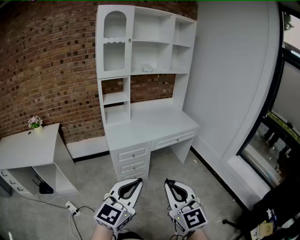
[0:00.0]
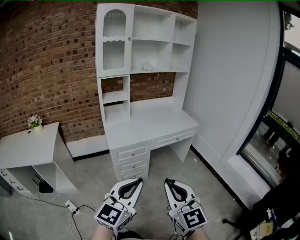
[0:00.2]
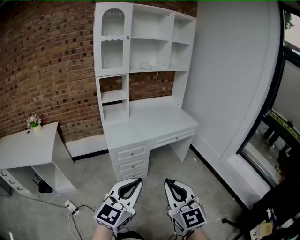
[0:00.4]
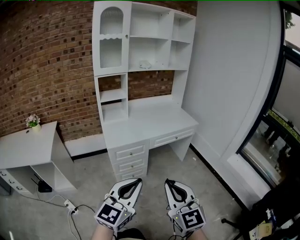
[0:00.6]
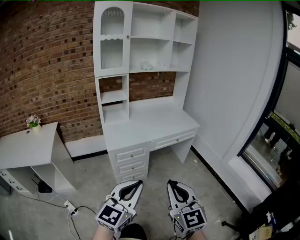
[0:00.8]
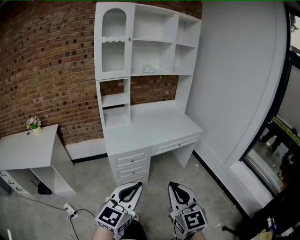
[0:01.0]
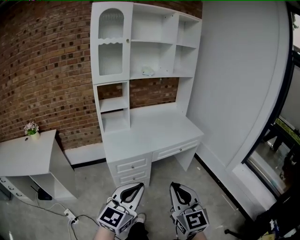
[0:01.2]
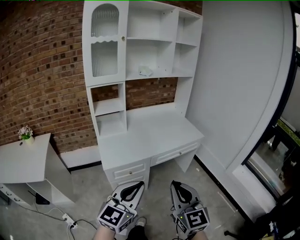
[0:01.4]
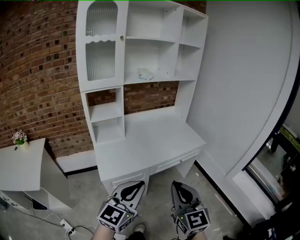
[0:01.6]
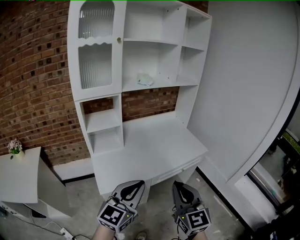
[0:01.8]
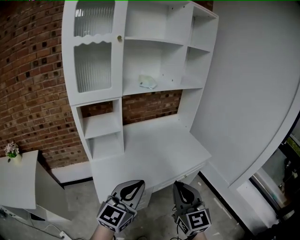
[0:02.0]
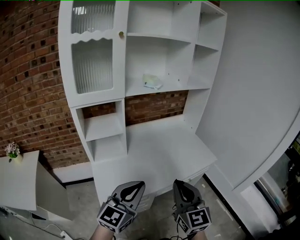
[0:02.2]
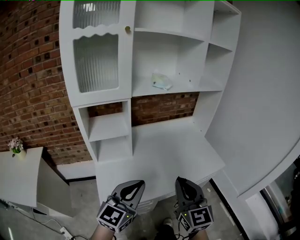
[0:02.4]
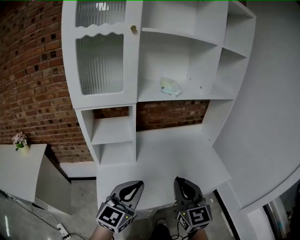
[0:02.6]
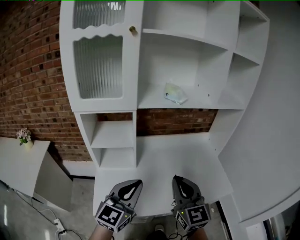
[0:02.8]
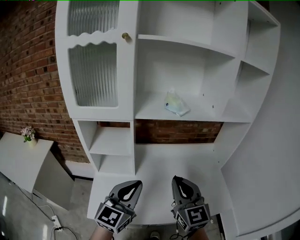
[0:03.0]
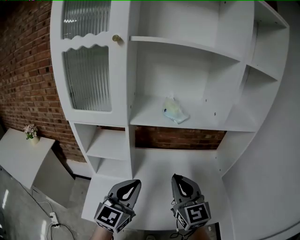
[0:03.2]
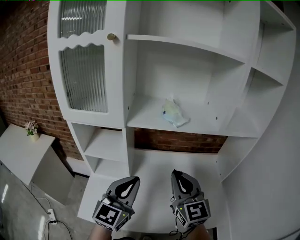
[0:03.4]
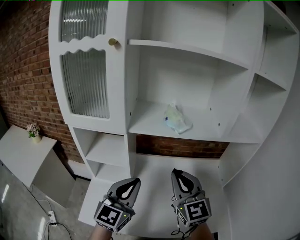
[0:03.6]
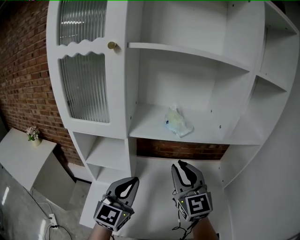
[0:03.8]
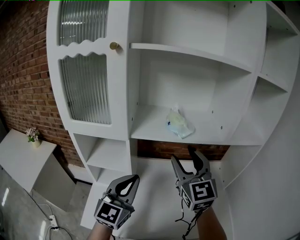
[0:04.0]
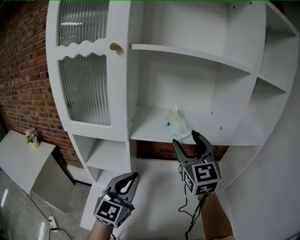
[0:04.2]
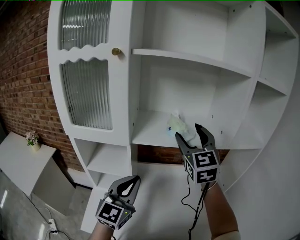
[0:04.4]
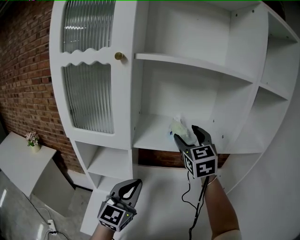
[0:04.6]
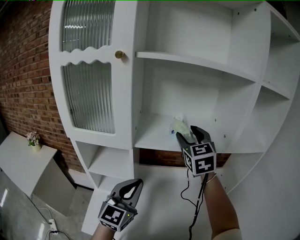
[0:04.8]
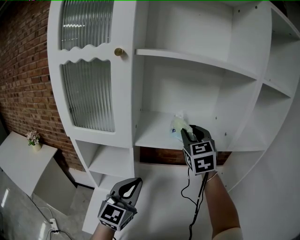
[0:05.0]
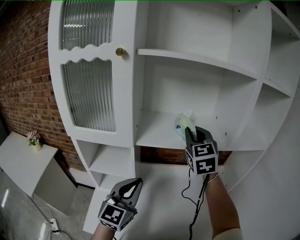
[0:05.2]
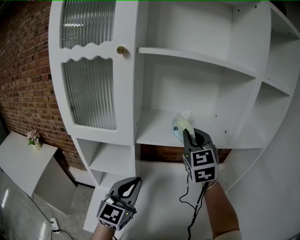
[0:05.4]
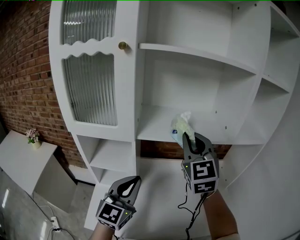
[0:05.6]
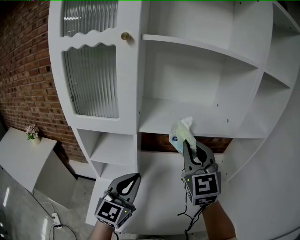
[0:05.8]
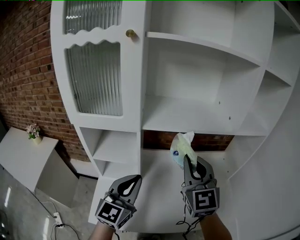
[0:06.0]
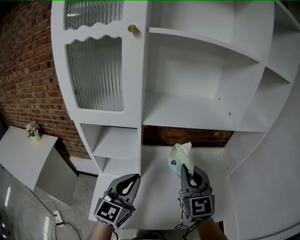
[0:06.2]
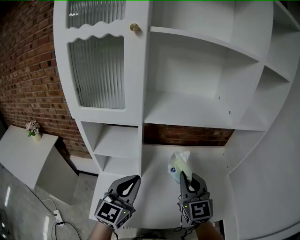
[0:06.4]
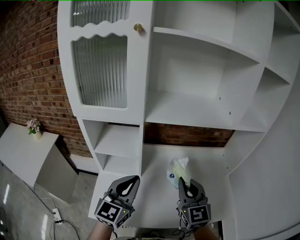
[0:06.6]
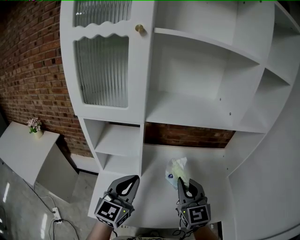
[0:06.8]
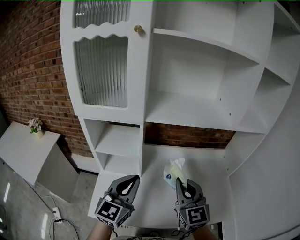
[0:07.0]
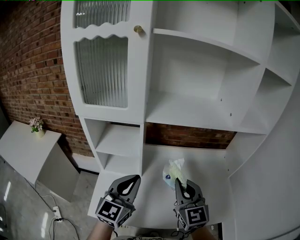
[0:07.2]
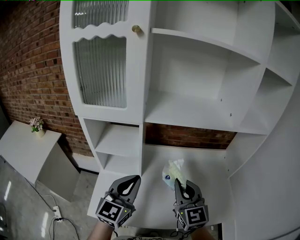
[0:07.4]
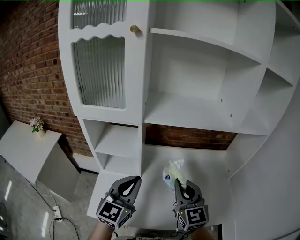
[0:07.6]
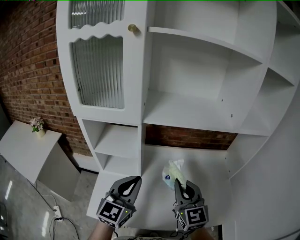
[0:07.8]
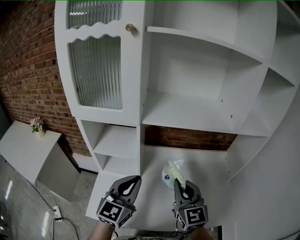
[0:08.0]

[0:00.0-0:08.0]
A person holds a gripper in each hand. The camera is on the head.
0:00.0 to 0:01.6: The grippers both shift forward by some 30 cm.
0:01.6 to 0:03.2: Both grippers are carried roughly 50 cm. The left gripper turns by roughly 30 degrees, while the right gripper rotates about 30 degrees.
0:03.2 to 0:04.8: The left gripper goes approximately 10 cm forward. The right gripper is displaced forward and upward by about 30 cm, and opens.
0:04.8 to 0:06.4: The right gripper is displaced backward and downward by approximately 25 cm, and closes, while the left gripper travels backward by approximately 5 cm.
0:06.4 to 0:08.0: The grippers make only small movements.

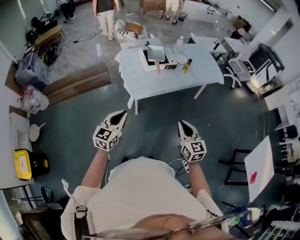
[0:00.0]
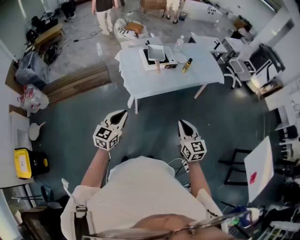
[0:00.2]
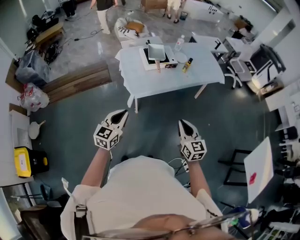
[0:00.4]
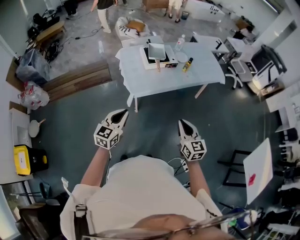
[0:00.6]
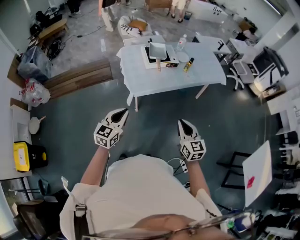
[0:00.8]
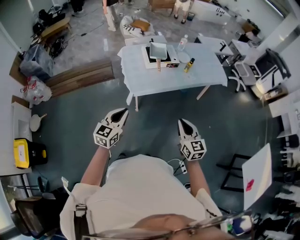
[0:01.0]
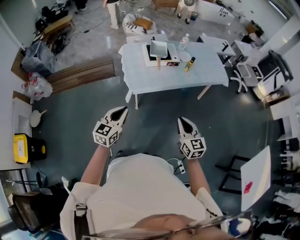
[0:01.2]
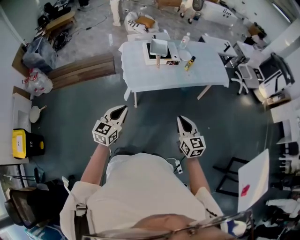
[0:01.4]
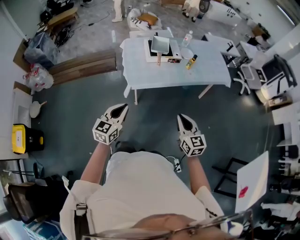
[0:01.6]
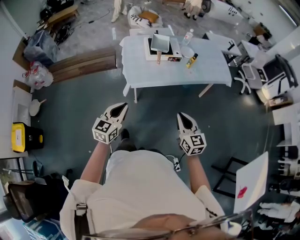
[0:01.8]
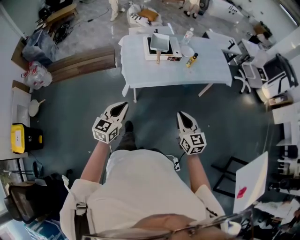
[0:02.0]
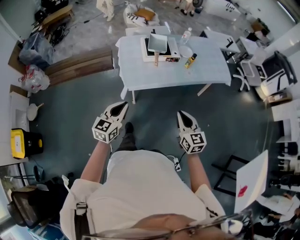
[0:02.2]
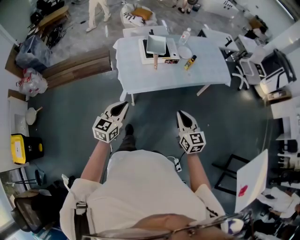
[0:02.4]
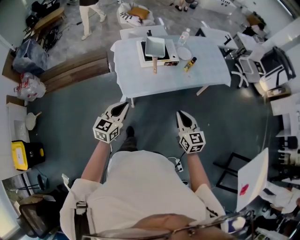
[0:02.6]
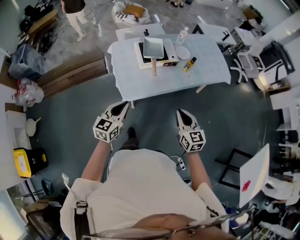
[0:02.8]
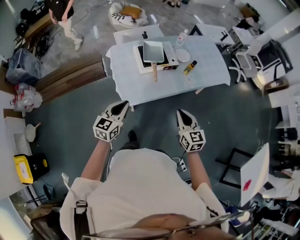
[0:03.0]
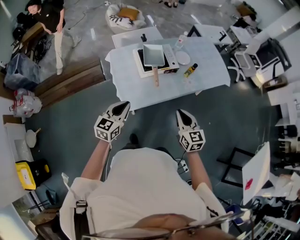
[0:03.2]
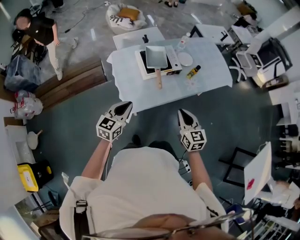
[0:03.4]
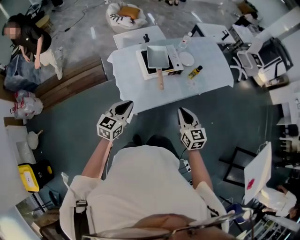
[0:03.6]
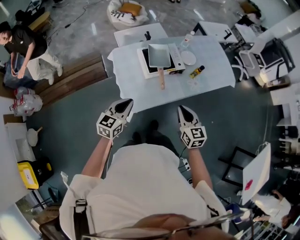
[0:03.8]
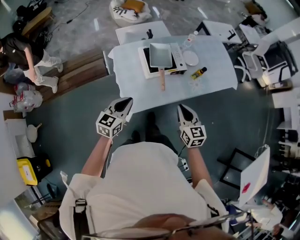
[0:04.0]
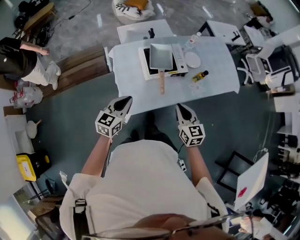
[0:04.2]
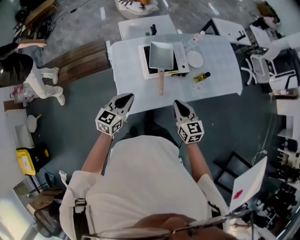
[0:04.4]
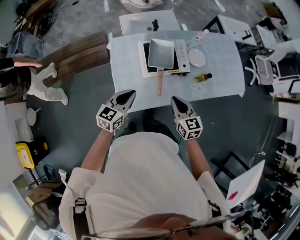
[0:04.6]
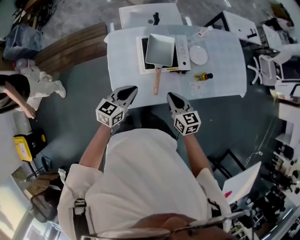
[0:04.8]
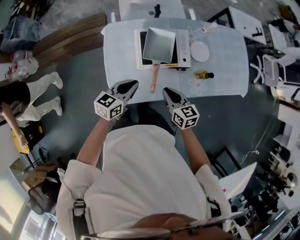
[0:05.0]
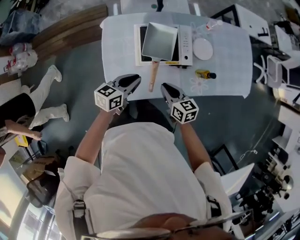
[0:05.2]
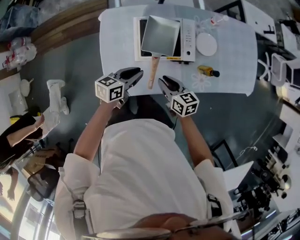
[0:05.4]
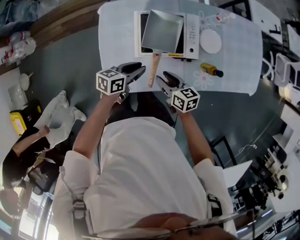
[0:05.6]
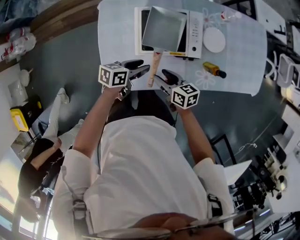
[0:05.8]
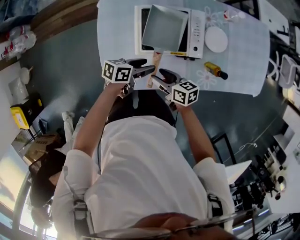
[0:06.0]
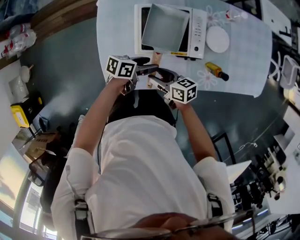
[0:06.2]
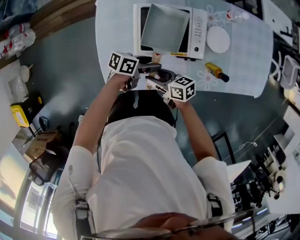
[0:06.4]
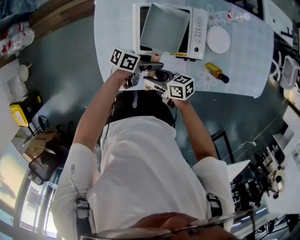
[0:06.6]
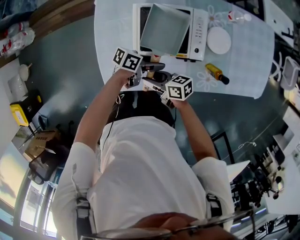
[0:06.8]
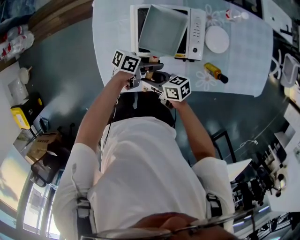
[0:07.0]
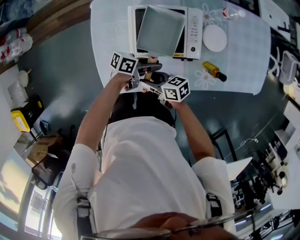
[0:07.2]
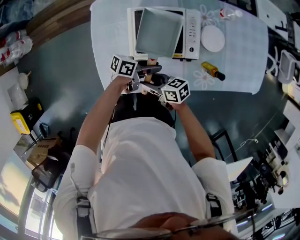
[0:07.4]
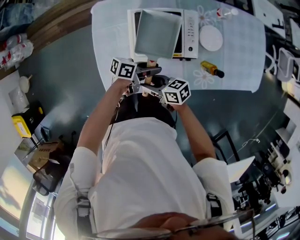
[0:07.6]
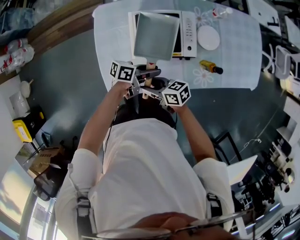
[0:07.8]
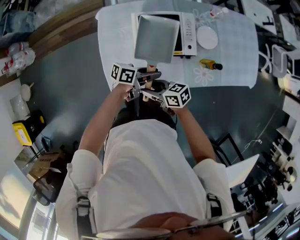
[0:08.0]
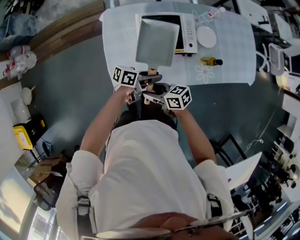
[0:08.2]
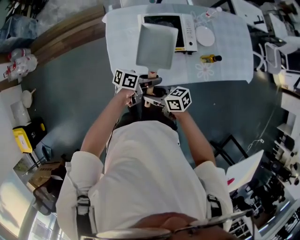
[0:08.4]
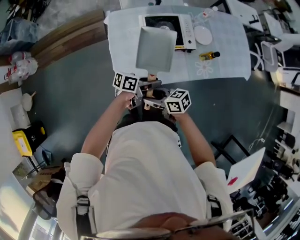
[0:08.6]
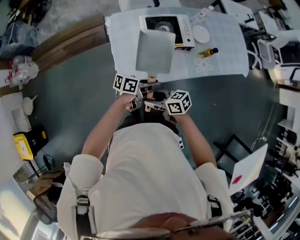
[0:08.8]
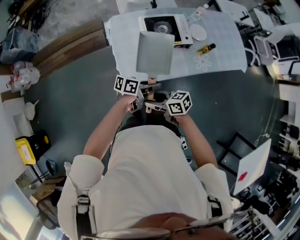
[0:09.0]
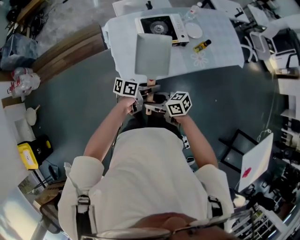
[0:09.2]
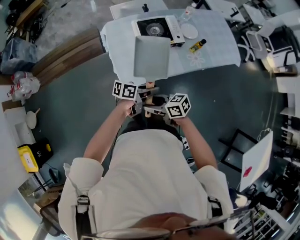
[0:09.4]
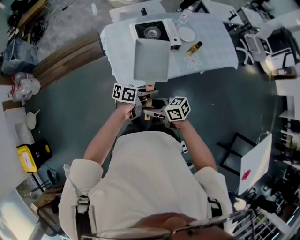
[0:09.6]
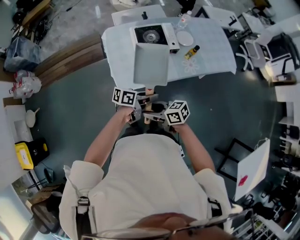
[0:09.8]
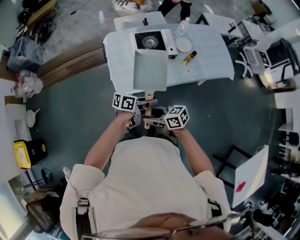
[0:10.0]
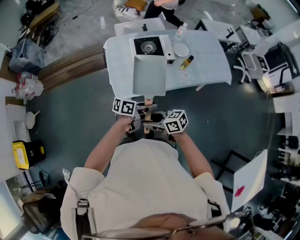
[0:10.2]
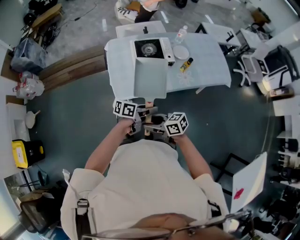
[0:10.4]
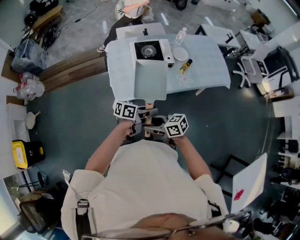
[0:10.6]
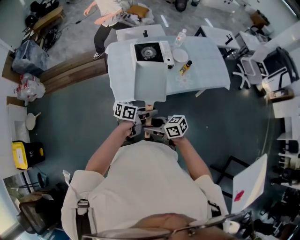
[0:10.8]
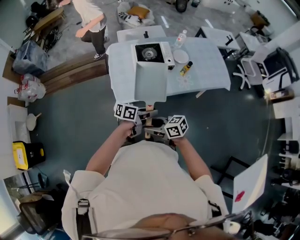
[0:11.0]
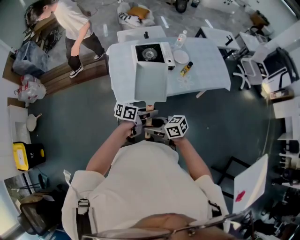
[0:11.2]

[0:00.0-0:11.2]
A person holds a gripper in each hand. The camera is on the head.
0:00.0 to 0:01.6: The two grippers go about 10 cm to the right.
0:01.6 to 0:03.2: Both grippers move forward, about 25 cm.
0:03.2 to 0:04.8: The right gripper is displaced forward and downward by roughly 25 cm, and turns by approximately 20 degrees. Meanwhile the left gripper moves forward, approximately 20 cm.
0:04.8 to 0:06.4: The grippers both shift downward by approximately 20 cm. The left gripper twists about 40 degrees counterclockwise, seen from behind, and opens up; the right gripper rotates some 50 degrees, and opens.
0:06.4 to 0:08.0: The left gripper heads upward, covering approximately 5 cm, and closes, while the right gripper moves some 10 cm.
0:08.0 to 0:09.6: The right gripper moves approximately 25 cm; the left gripper moves approximately 25 cm.
0:09.6 to 0:11.2: The right gripper ends up approximately 10 cm from where it was. Meanwhile the left gripper changes place by some 10 cm.

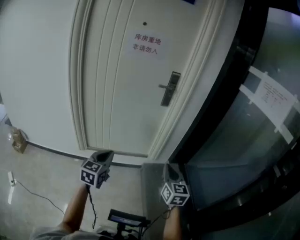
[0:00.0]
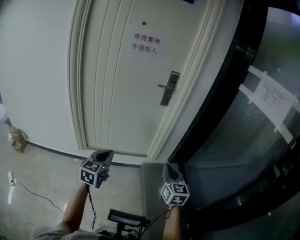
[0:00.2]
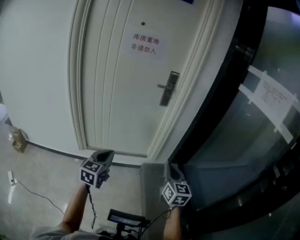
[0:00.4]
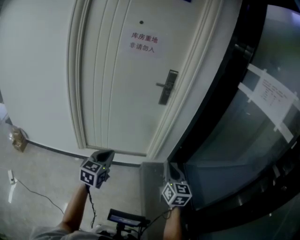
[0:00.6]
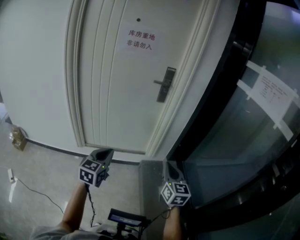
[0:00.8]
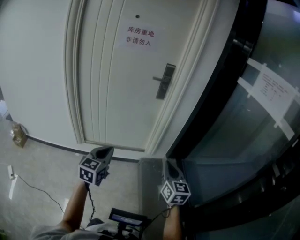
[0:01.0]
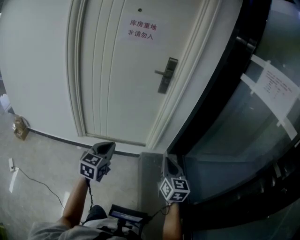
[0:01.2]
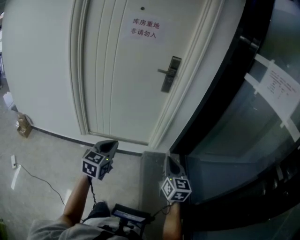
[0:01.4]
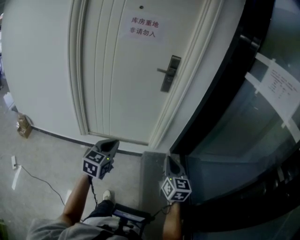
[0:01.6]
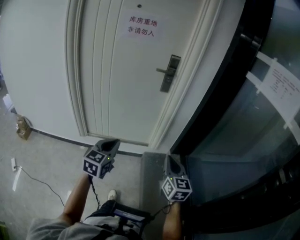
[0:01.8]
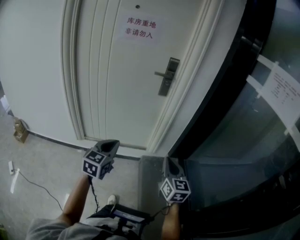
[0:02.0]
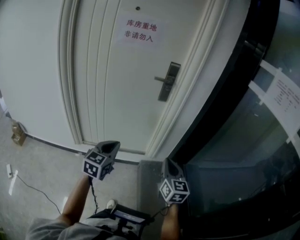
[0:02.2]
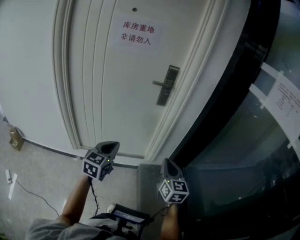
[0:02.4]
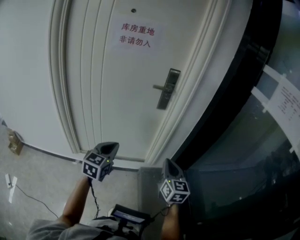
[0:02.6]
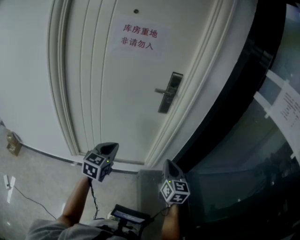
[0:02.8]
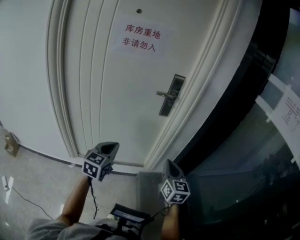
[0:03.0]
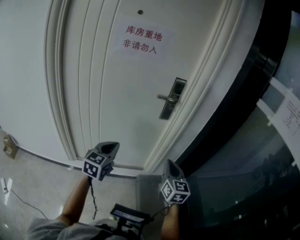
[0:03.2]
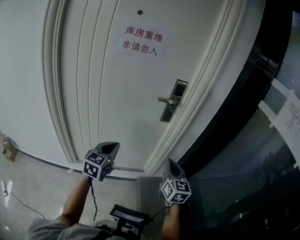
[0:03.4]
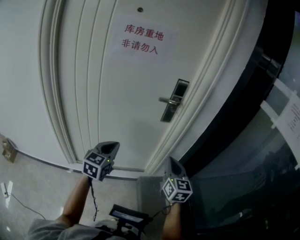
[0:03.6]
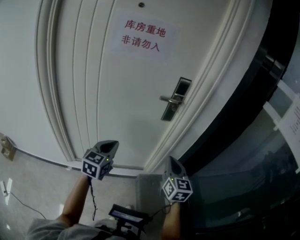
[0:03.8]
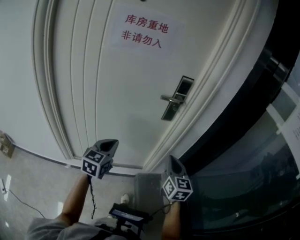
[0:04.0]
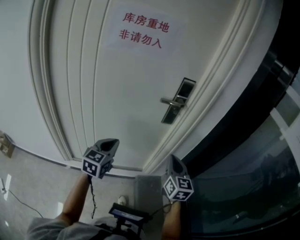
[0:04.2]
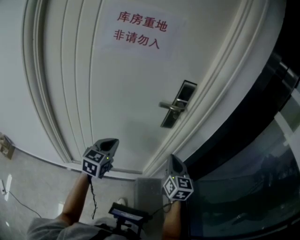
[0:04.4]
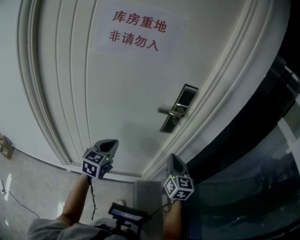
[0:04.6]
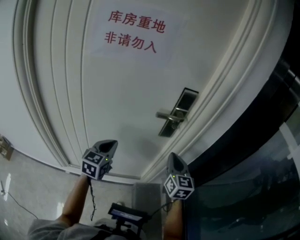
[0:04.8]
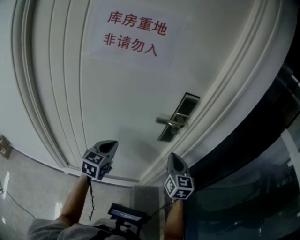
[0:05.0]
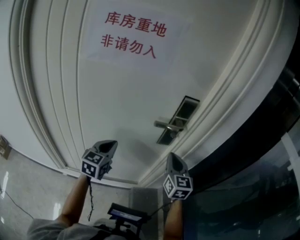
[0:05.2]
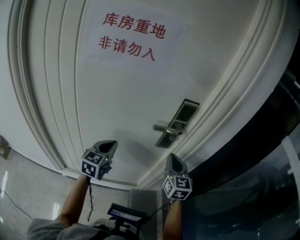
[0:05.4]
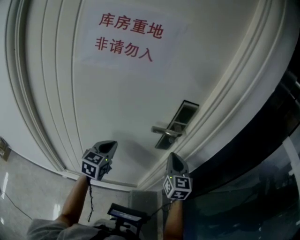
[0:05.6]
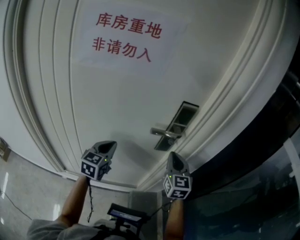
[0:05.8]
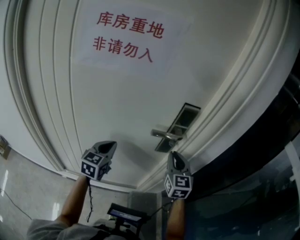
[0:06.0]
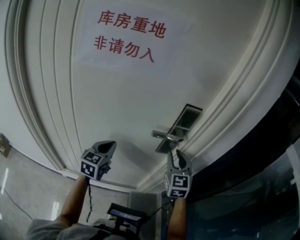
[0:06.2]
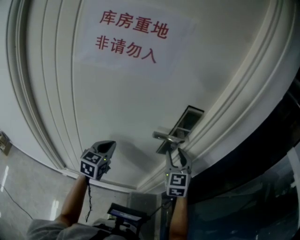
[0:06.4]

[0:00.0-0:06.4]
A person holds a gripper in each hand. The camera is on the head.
0:00.0 to 0:01.6: Both grippers travel together to the right, approximately 10 cm.
0:01.6 to 0:03.2: Both grippers travel together forward, some 25 cm.
0:03.2 to 0:04.8: The two grippers go roughly 25 cm forward.
0:04.8 to 0:06.4: Both grippers travel together forward, some 10 cm. The right gripper changes its angle by roughly 30 degrees, and opens.
